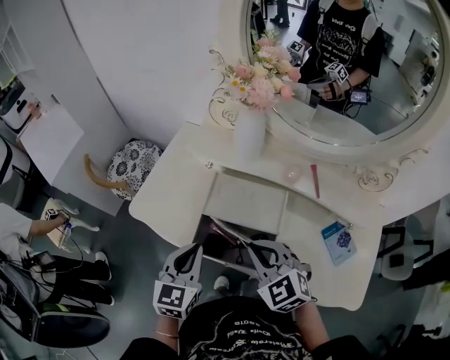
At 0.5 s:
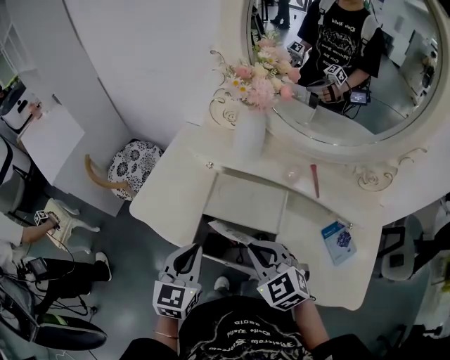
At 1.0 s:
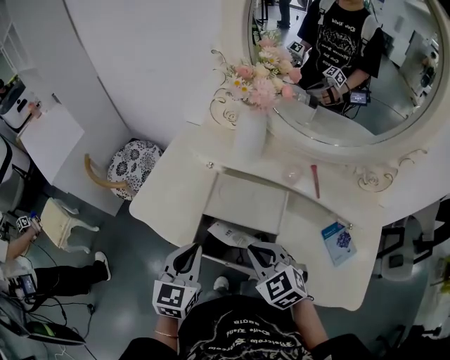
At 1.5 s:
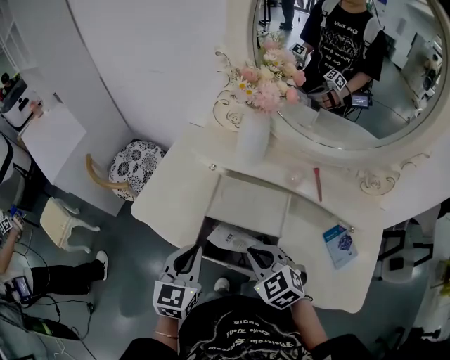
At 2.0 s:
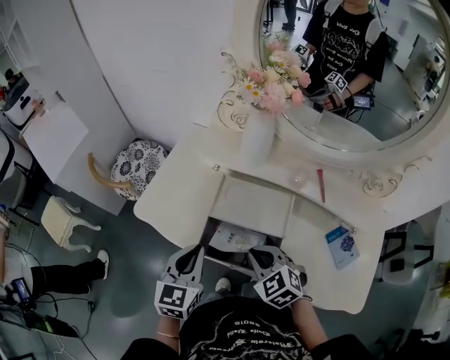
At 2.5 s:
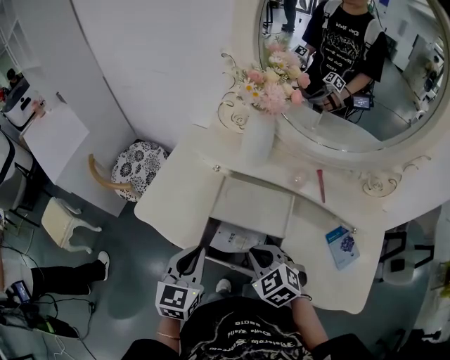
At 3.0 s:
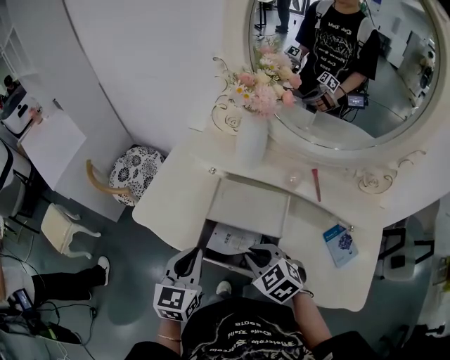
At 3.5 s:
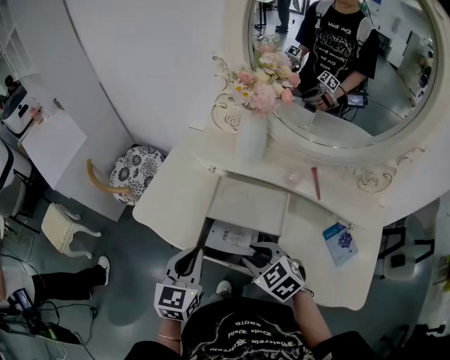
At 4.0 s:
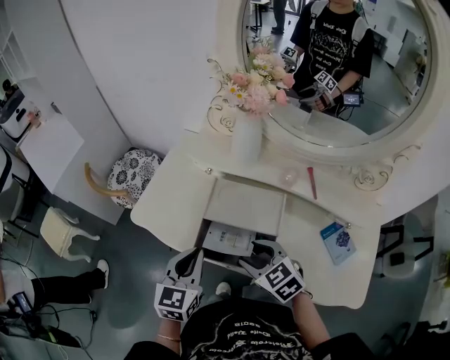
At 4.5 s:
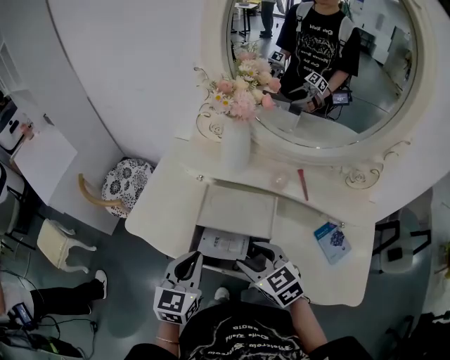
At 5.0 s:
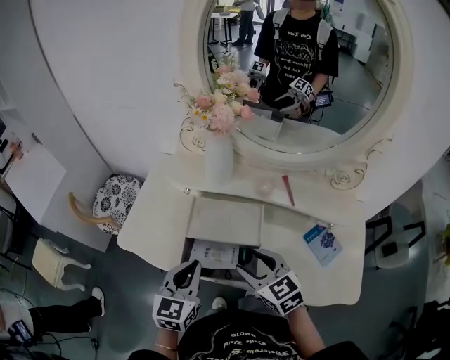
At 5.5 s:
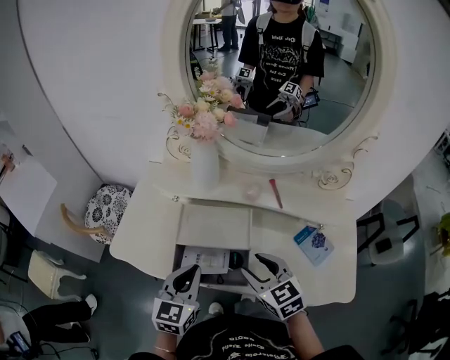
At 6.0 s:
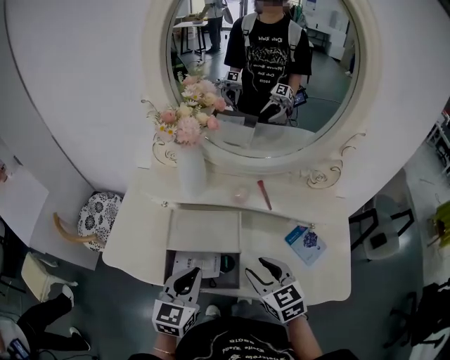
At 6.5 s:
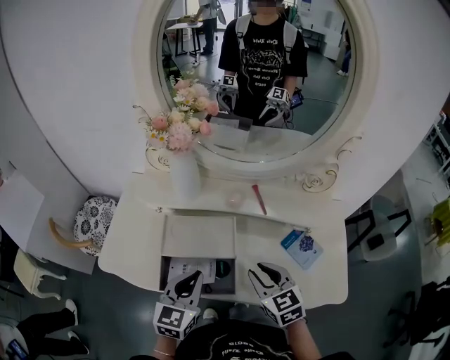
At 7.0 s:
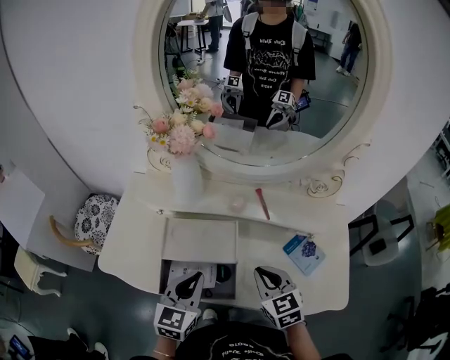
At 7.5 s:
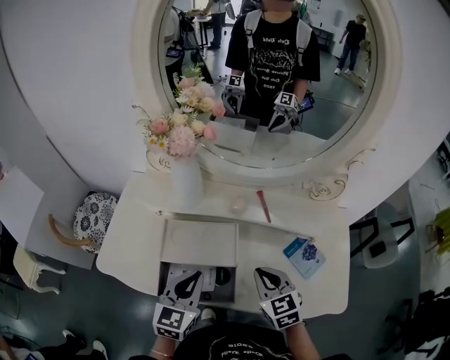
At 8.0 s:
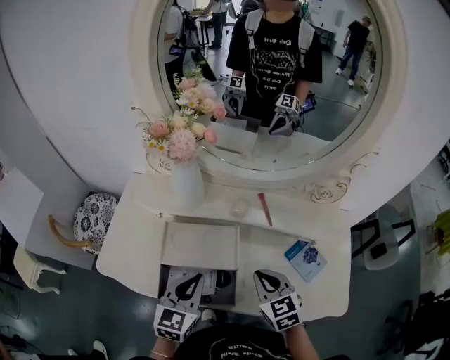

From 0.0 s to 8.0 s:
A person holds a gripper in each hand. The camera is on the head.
From 0.0 s to 2.0 s: The right gripper travels downward by roughly 5 cm.
From 2.0 s to 4.0 s: The right gripper opens its fingers.
From 4.0 s to 6.0 s: Both grippers move to the right, about 10 cm. The right gripper rotates some 30 degrees.
From 6.0 s to 8.0 s: The right gripper closes.

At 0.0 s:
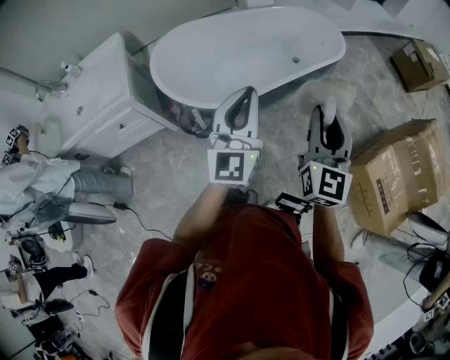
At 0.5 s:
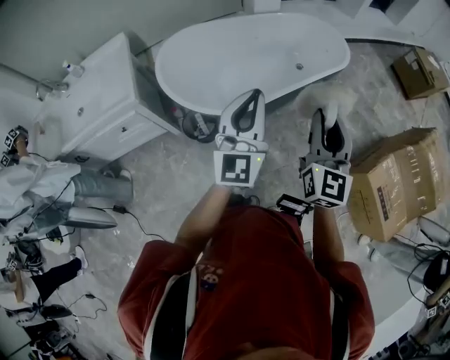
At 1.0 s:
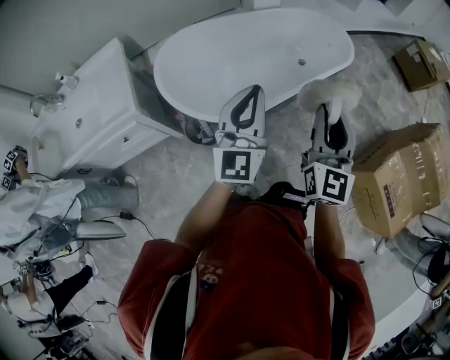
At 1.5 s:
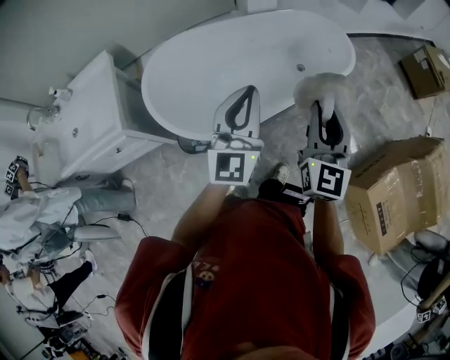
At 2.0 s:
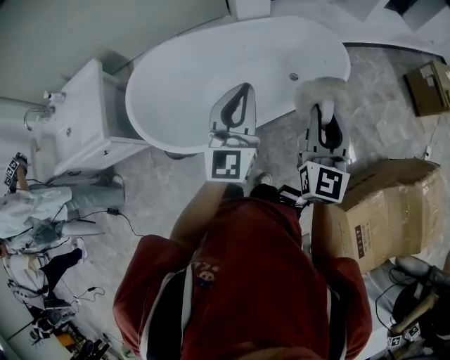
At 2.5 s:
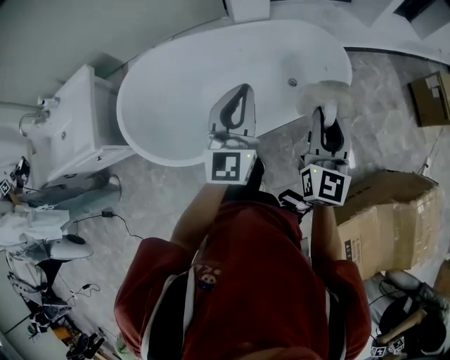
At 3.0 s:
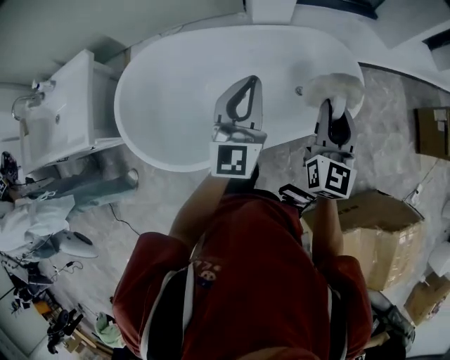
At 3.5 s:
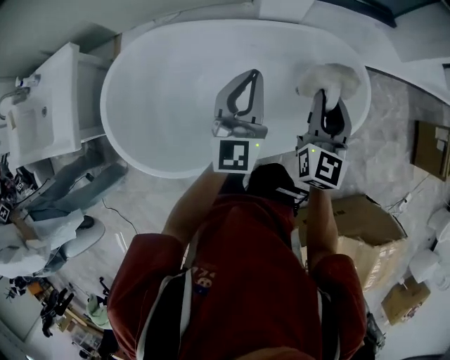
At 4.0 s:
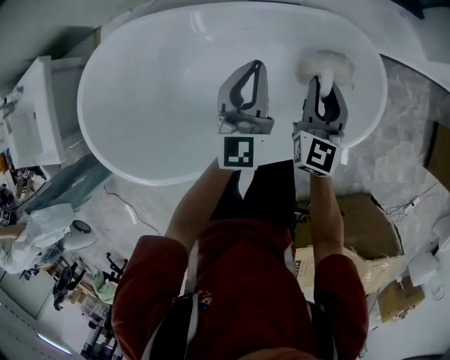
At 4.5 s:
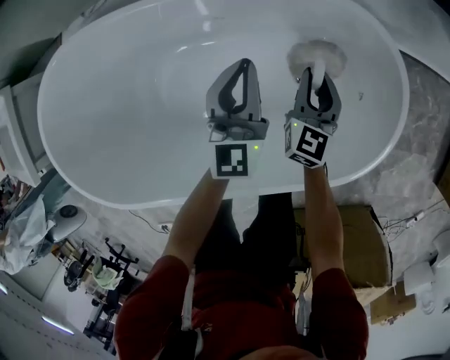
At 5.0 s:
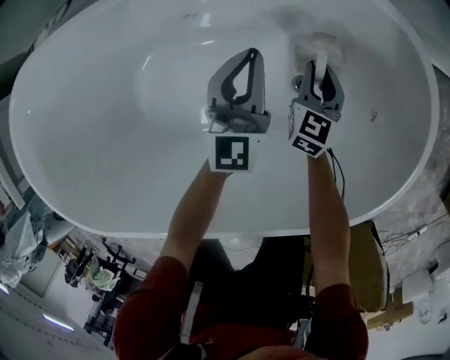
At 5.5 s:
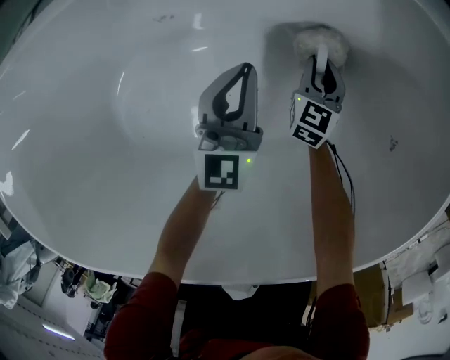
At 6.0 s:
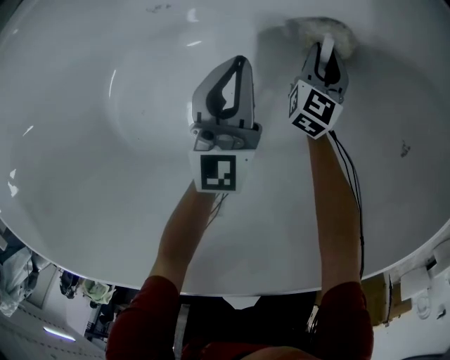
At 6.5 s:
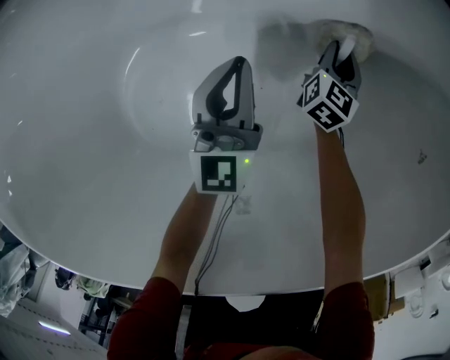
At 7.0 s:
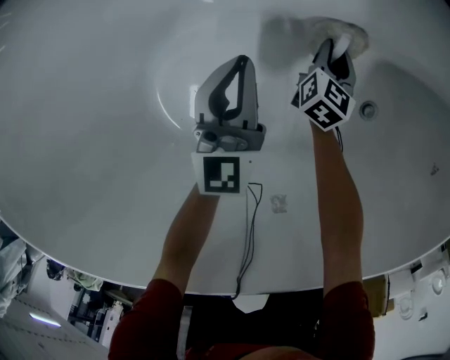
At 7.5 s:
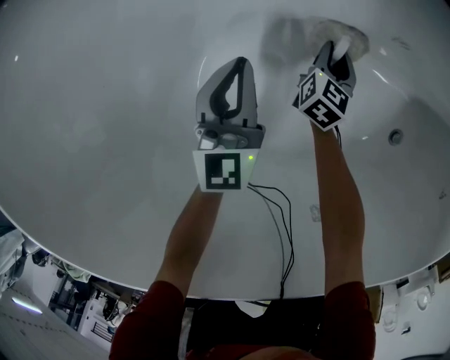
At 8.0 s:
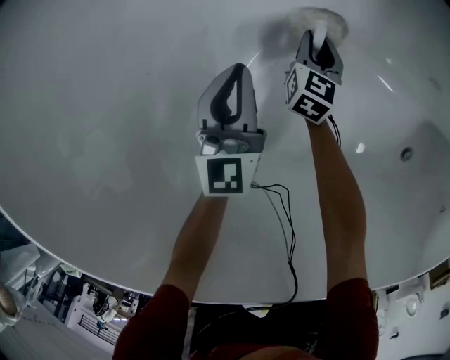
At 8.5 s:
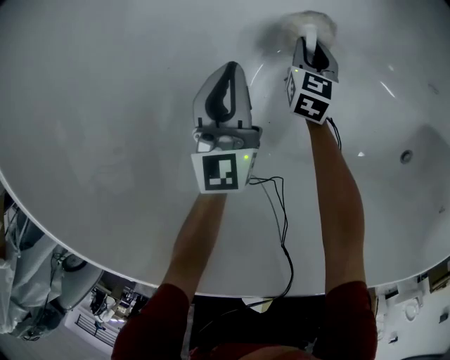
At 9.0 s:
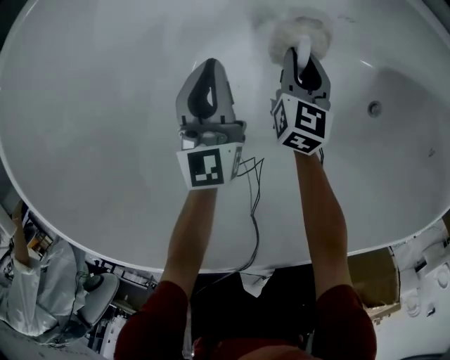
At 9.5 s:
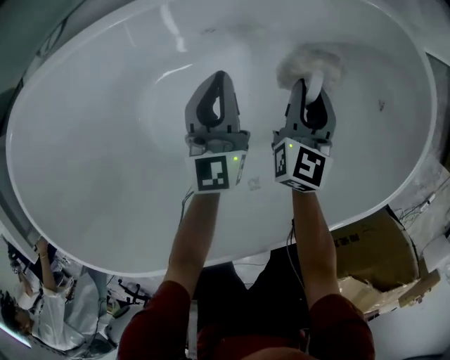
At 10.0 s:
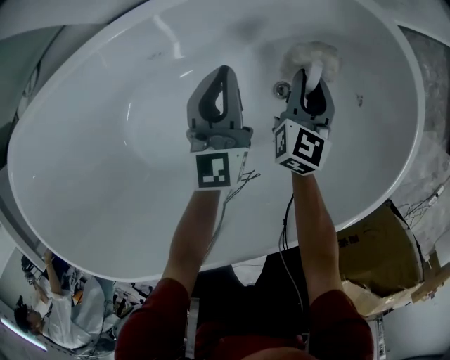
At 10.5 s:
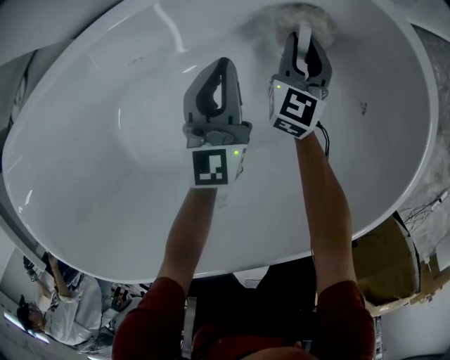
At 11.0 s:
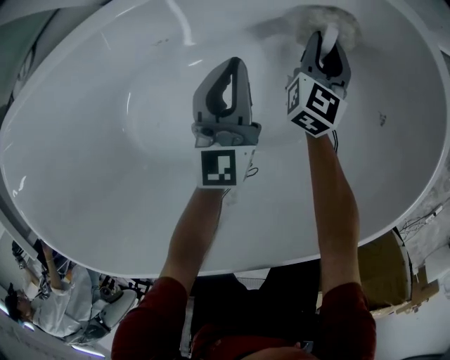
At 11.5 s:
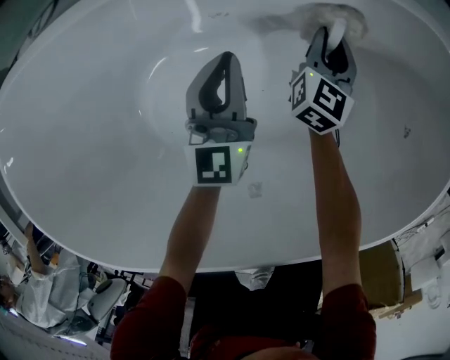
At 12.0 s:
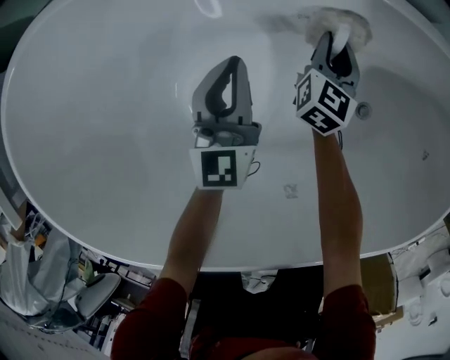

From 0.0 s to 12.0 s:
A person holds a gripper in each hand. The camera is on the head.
From 0.0 s to 2.0 s: The grippers both shift forward by roughly 30 cm.
From 2.0 s to 4.0 s: The pair of grippers is taken forward, roughly 50 cm. Both grippers travel together downward, some 30 cm. The left gripper changes its angle by about 20 degrees.
From 4.0 s to 6.0 s: Both grippers travel together downward, roughly 60 cm.
From 6.0 s to 8.0 s: The left gripper goes to the left and returns, about 15 cm each way. The right gripper goes left and right, approximately 20 cm each way, reversing 2 times.
From 8.0 s to 10.0 s: Both grippers are carried about 60 cm. The left gripper changes its angle by approximately 30 degrees; the right gripper rotates about 30 degrees.
From 10.0 s to 12.0 s: The left gripper is displaced to the left and backward by some 35 cm, while the right gripper heads to the left, covering about 35 cm.

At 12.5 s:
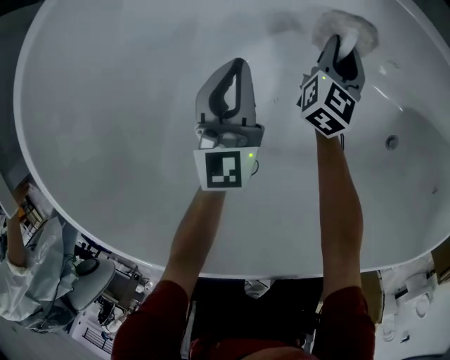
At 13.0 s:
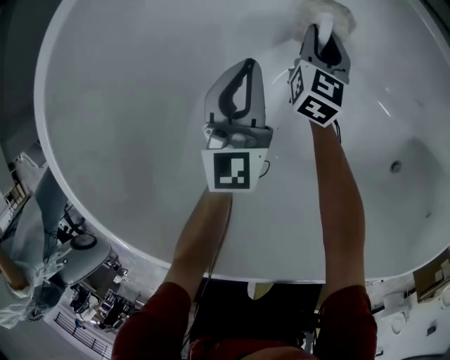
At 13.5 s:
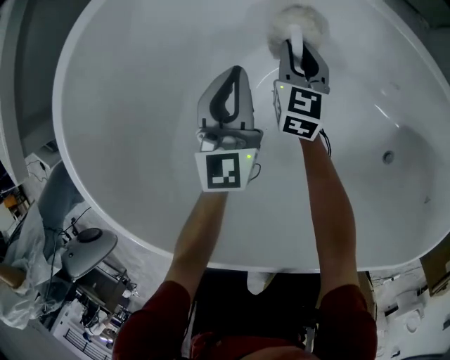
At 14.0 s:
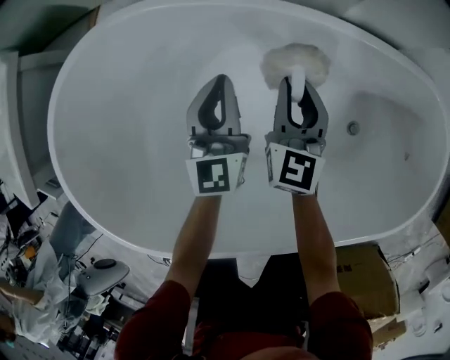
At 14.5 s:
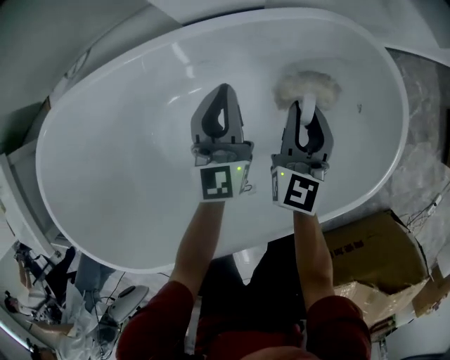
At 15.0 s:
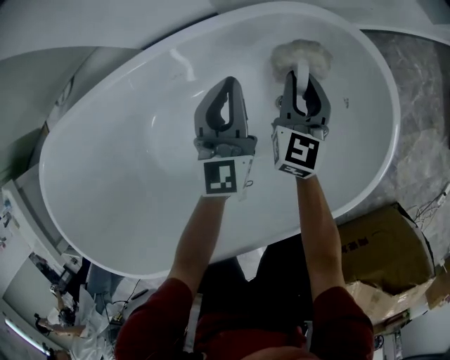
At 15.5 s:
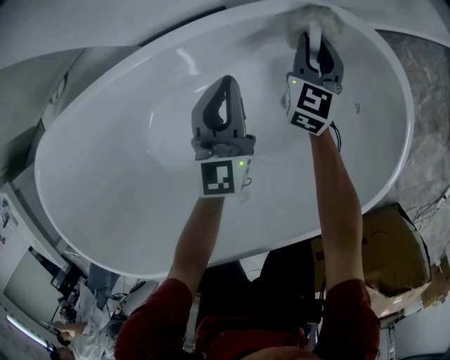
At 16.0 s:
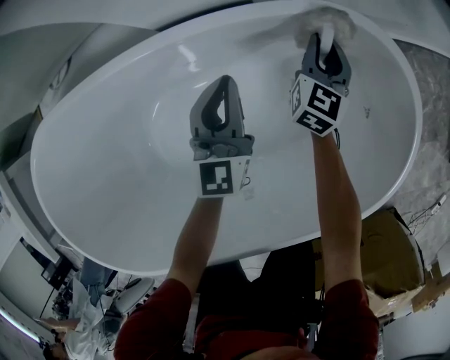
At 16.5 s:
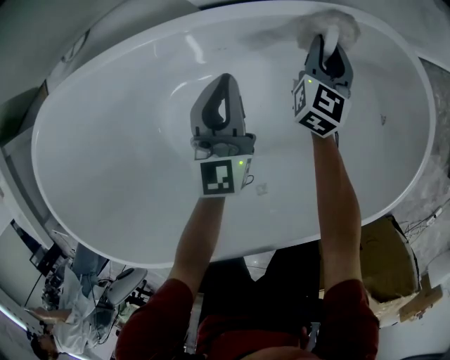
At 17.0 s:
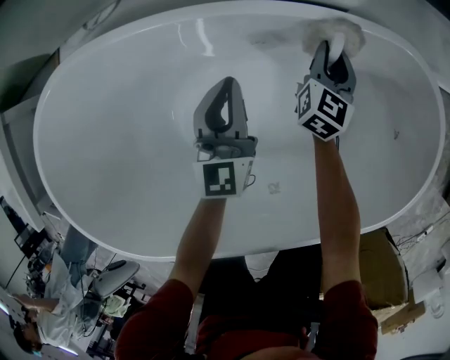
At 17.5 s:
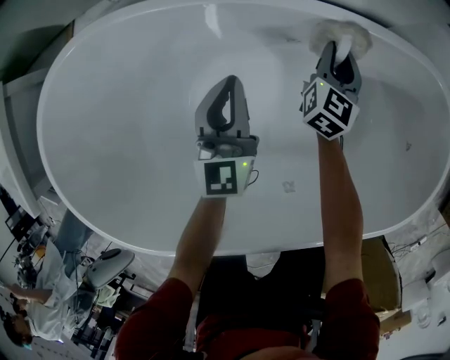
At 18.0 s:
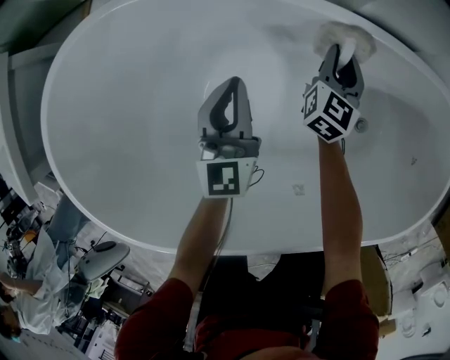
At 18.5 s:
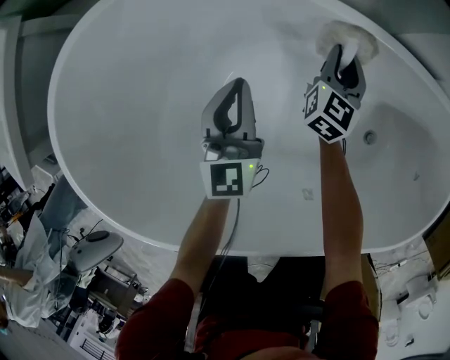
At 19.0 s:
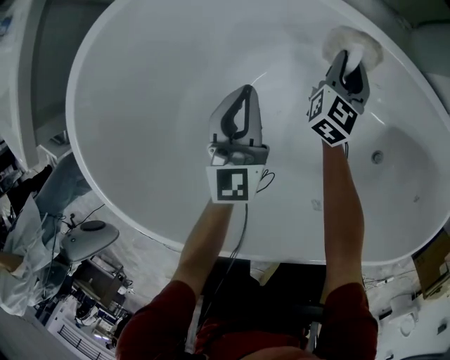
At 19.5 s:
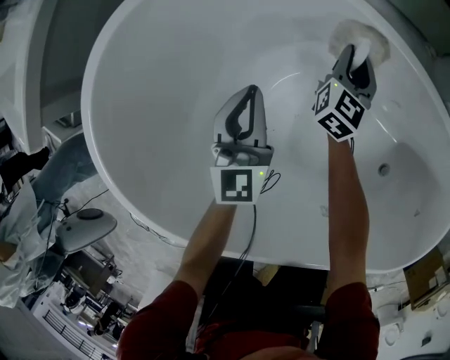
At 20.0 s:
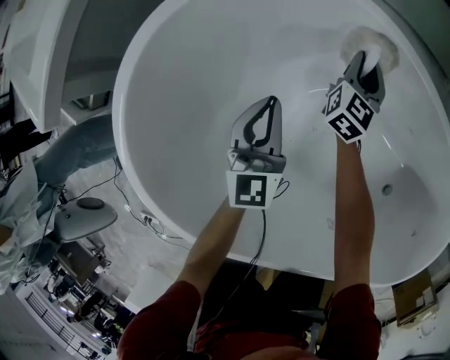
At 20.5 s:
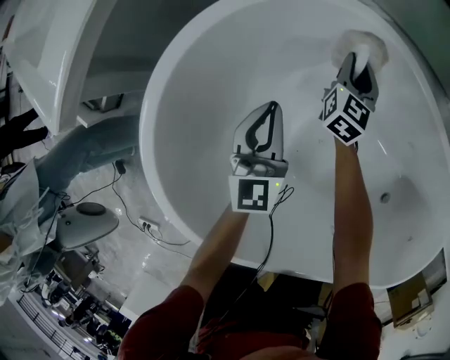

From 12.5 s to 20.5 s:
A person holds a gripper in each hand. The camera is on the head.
From 12.5 s to 14.5 s: Both grippers are carried some 50 cm. The left gripper swivels some 20 degrees.
From 14.5 s to 16.5 s: The left gripper is displaced downward by some 5 cm, and goes to the right and returns, some 10 cm each way, while the right gripper shifts some 20 cm forward and downward.
From 16.5 s to 18.5 s: Both grippers travel together to the left, roughly 35 cm. The left gripper swivels roughly 20 degrees.
From 18.5 s to 20.5 s: The two grippers go about 30 cm to the left.
